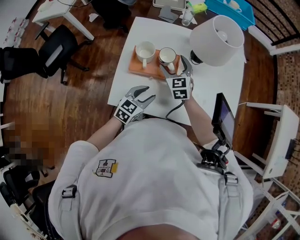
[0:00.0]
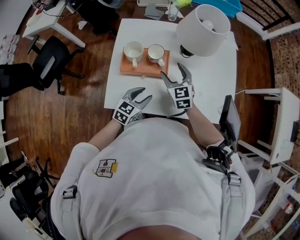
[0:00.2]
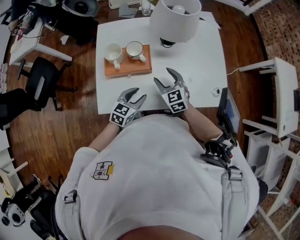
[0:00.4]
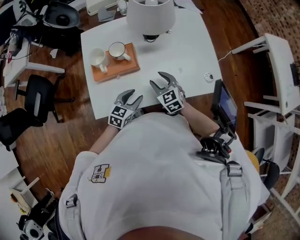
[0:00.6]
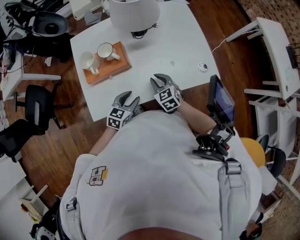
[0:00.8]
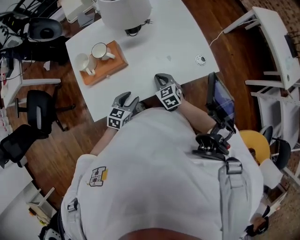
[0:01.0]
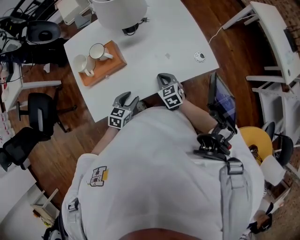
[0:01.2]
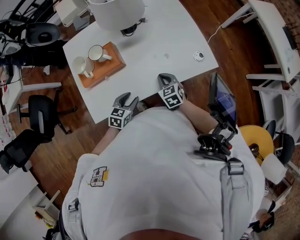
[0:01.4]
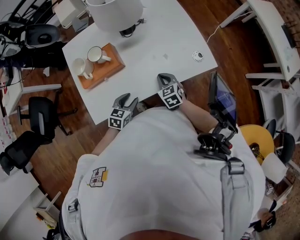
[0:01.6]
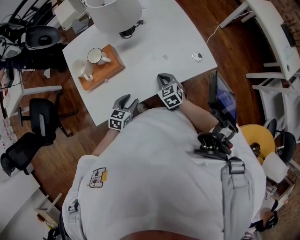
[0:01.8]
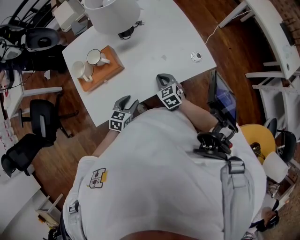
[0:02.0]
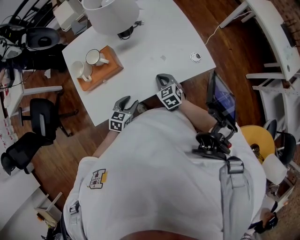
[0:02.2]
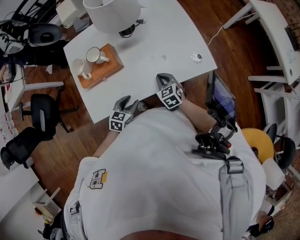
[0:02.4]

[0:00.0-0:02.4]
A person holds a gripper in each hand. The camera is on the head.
0:00.0 to 0:01.2: The left gripper goes approximately 15 cm to the right, downward and backward, and rotates about 20 degrees. The right gripper goes approximately 30 cm to the right, backward and downward, turns by some 30 degrees, and closes.
0:01.2 to 0:02.4: There are only small adjustments of the grippers.

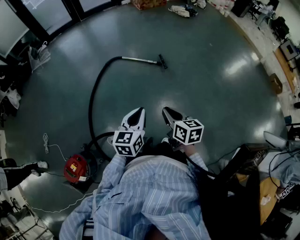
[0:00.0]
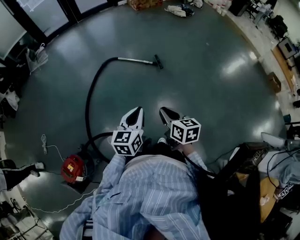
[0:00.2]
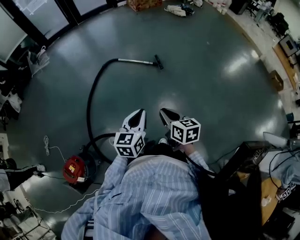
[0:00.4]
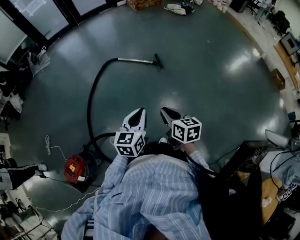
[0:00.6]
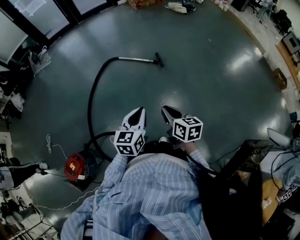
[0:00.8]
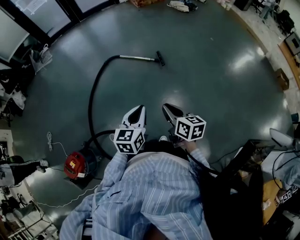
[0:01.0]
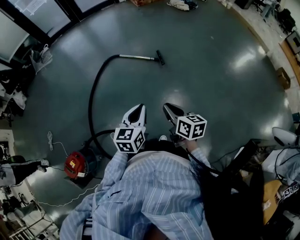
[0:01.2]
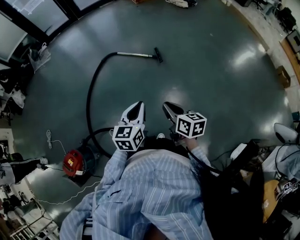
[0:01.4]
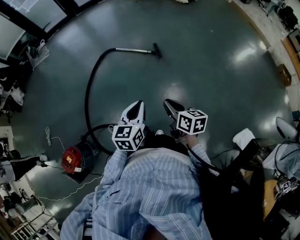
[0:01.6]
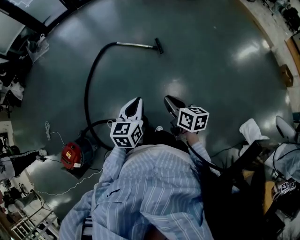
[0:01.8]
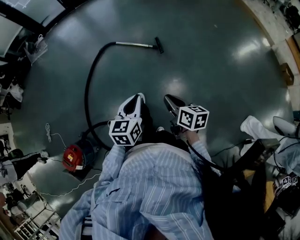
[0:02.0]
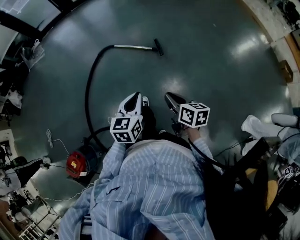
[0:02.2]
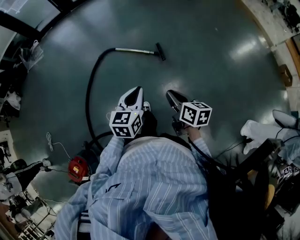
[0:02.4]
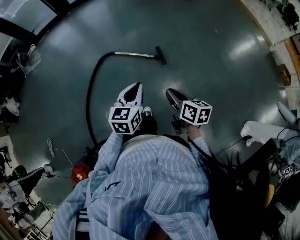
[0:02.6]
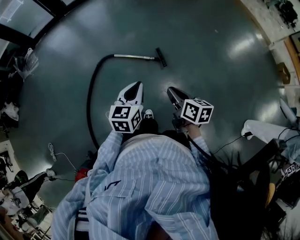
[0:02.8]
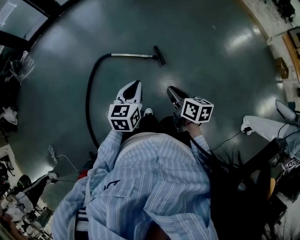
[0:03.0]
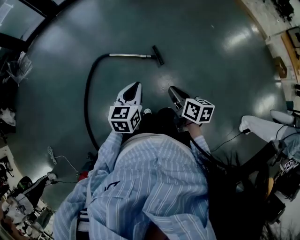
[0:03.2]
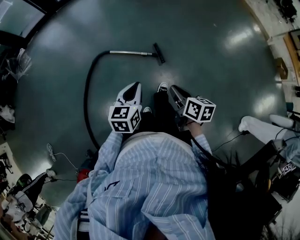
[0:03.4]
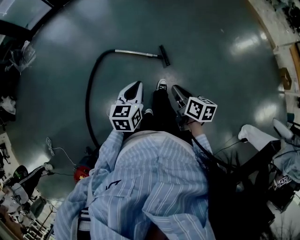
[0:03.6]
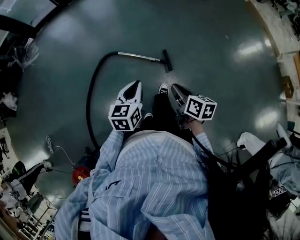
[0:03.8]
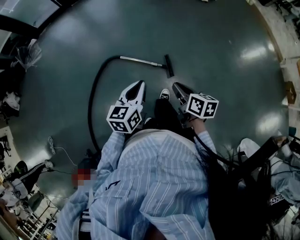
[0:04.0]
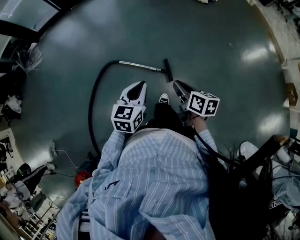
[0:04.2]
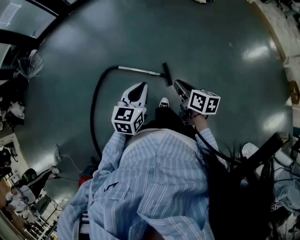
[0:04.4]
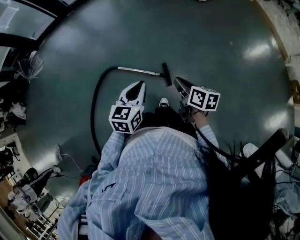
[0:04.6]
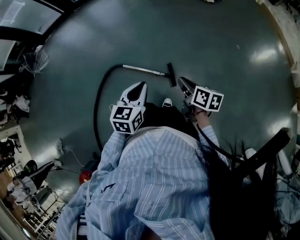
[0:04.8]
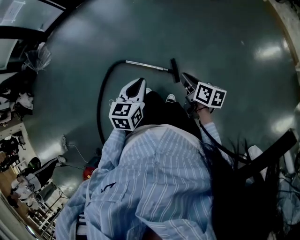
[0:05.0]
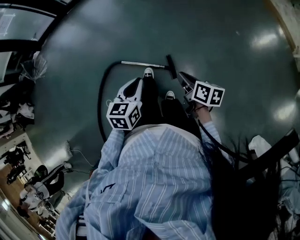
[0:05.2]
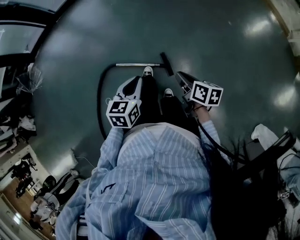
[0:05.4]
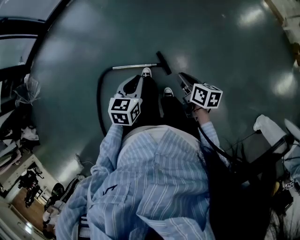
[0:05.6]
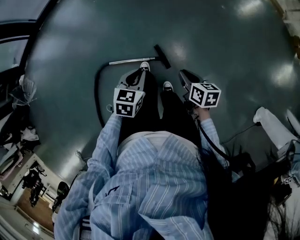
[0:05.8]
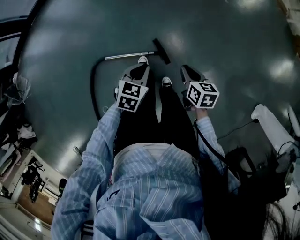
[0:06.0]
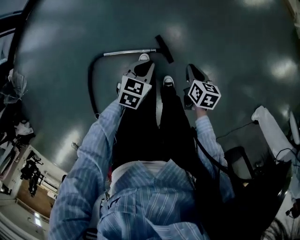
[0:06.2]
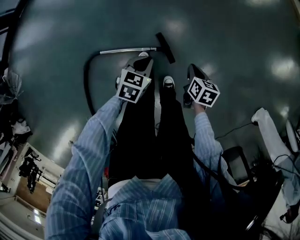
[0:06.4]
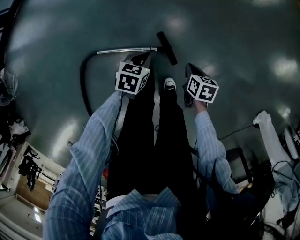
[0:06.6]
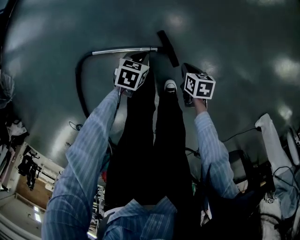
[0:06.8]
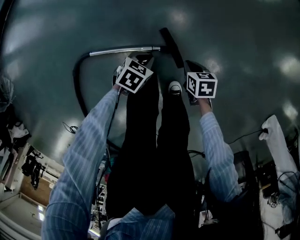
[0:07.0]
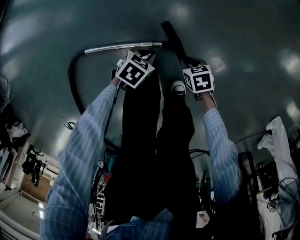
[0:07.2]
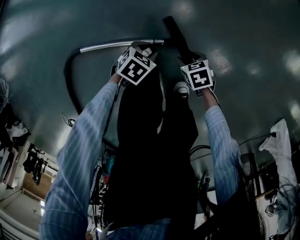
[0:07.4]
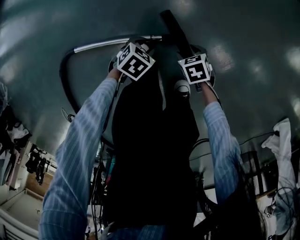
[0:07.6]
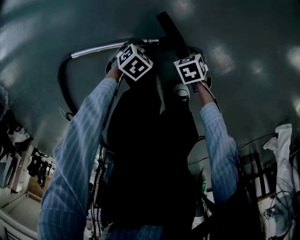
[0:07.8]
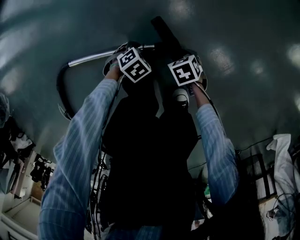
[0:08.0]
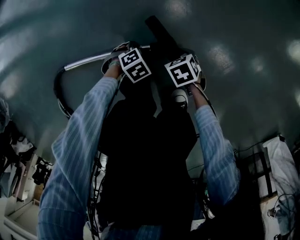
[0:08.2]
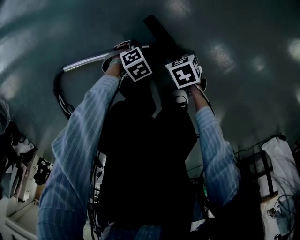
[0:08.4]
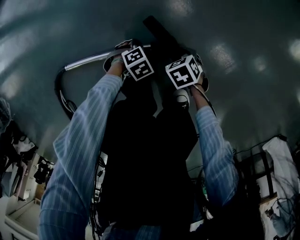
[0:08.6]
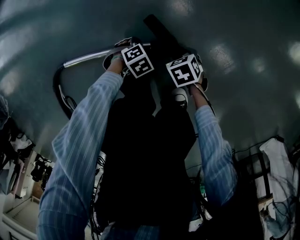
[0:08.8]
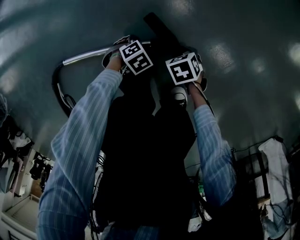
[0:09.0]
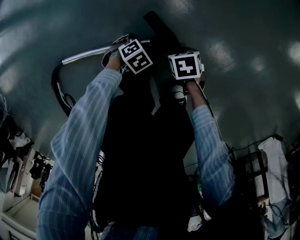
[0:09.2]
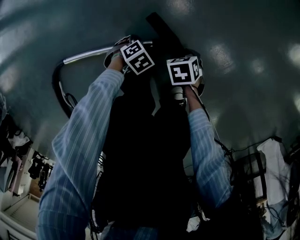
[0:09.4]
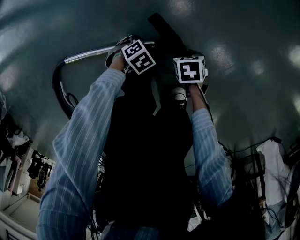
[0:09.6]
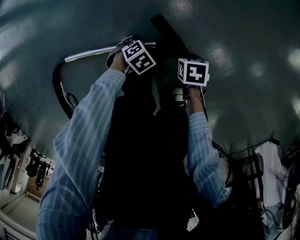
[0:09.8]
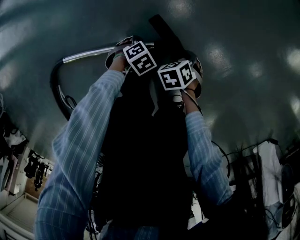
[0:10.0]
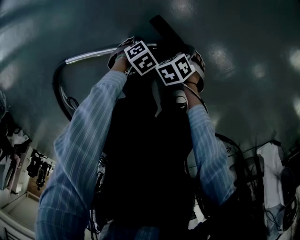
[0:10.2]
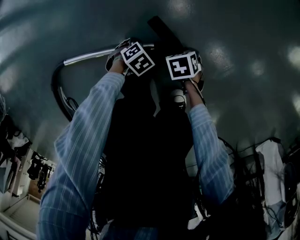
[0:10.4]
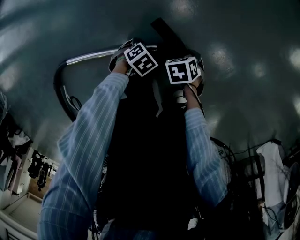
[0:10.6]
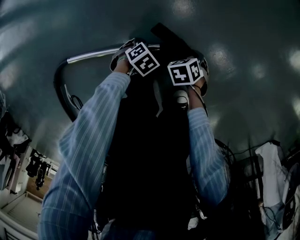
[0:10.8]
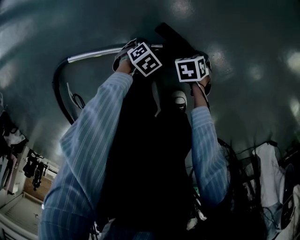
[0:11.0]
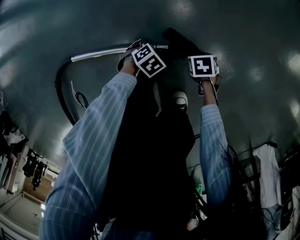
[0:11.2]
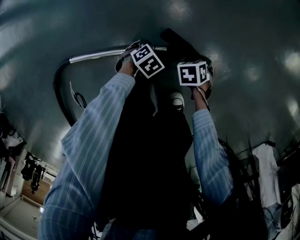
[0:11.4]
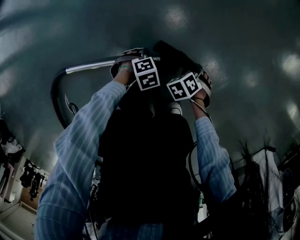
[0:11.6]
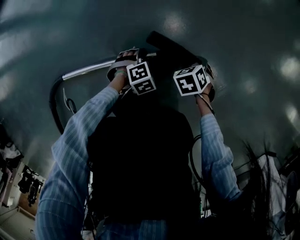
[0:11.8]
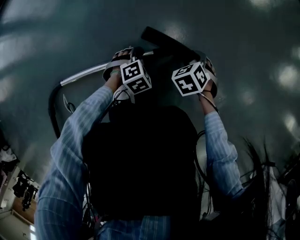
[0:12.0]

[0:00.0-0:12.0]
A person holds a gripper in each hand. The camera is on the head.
0:00.0 to 0:01.6: The two grippers go some 15 cm to the right.
0:01.6 to 0:03.0: The two grippers go about 35 cm forward.
0:03.0 to 0:04.4: The two grippers go some 30 cm forward.
0:04.4 to 0:06.0: The left gripper ends up about 25 cm from where it was, and changes its angle by approximately 40 degrees. The right gripper heads downward, covering roughly 15 cm, and swivels about 20 degrees.
0:06.0 to 0:07.6: The grippers both shift downward by roughly 60 cm. The right gripper swivels approximately 40 degrees, and opens up. The left gripper rotates approximately 30 degrees, and opens up.
0:07.6 to 0:09.0: The left gripper moves downward, some 10 cm, and rotates some 30 degrees; the right gripper shifts some 5 cm downward.
0:10.4 to 0:12.0: The left gripper changes place by approximately 10 cm, and turns by about 30 degrees; the right gripper moves some 15 cm, and turns by some 30 degrees.

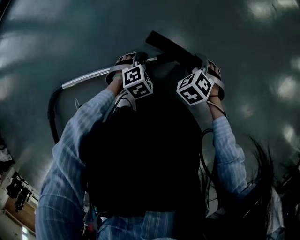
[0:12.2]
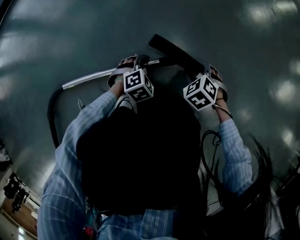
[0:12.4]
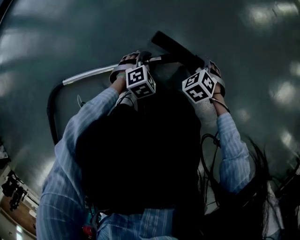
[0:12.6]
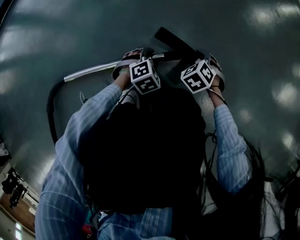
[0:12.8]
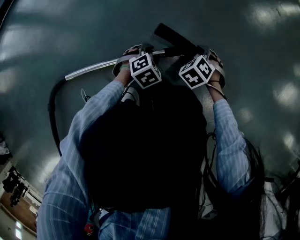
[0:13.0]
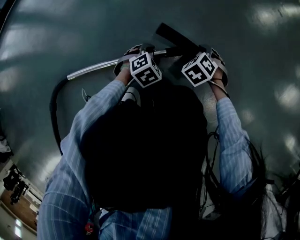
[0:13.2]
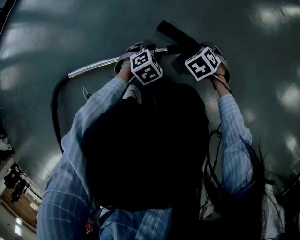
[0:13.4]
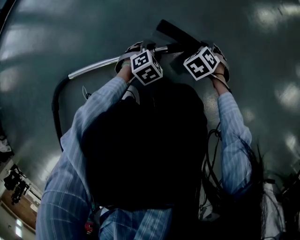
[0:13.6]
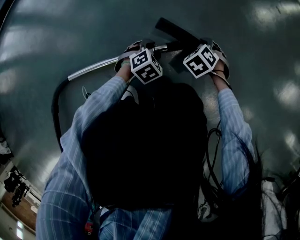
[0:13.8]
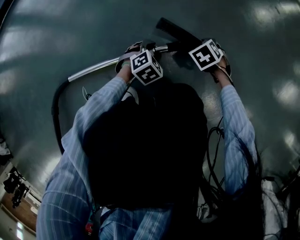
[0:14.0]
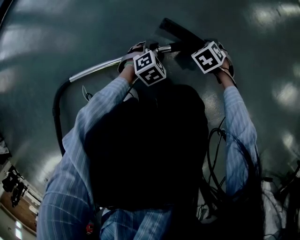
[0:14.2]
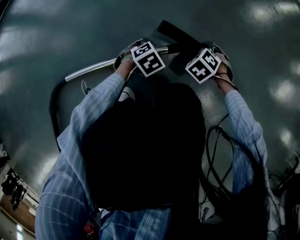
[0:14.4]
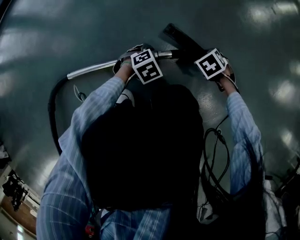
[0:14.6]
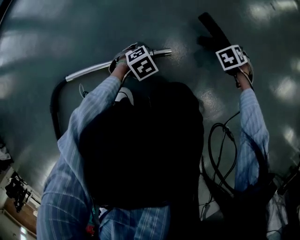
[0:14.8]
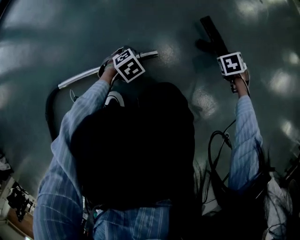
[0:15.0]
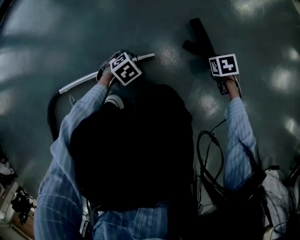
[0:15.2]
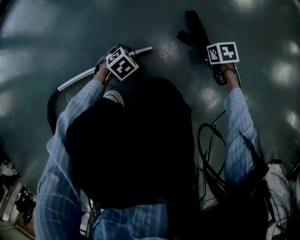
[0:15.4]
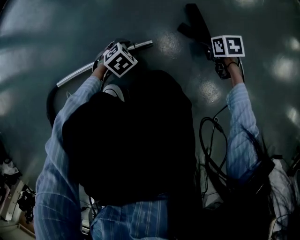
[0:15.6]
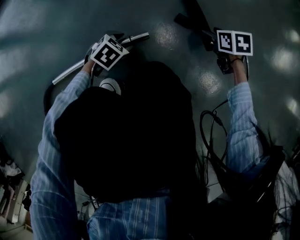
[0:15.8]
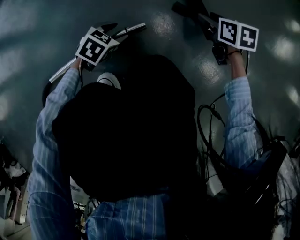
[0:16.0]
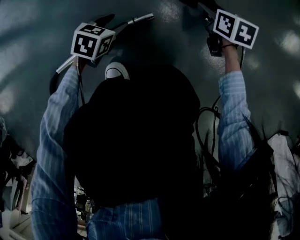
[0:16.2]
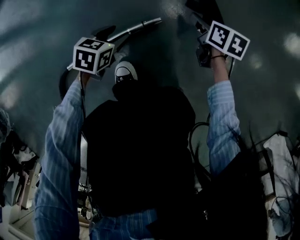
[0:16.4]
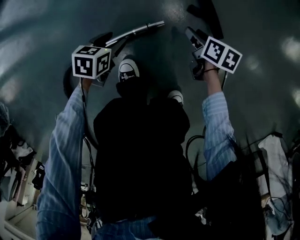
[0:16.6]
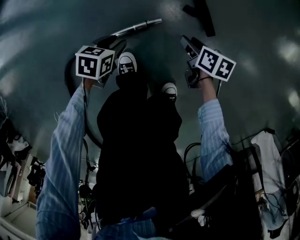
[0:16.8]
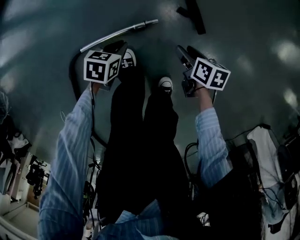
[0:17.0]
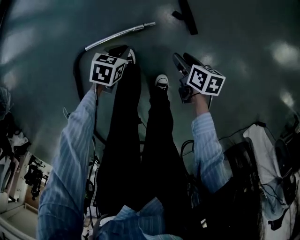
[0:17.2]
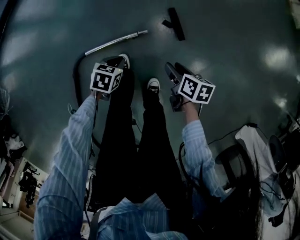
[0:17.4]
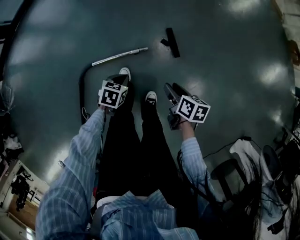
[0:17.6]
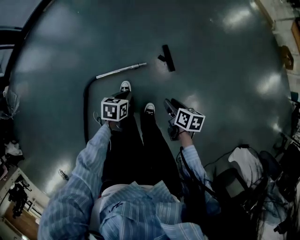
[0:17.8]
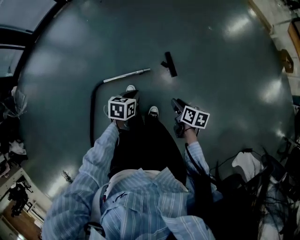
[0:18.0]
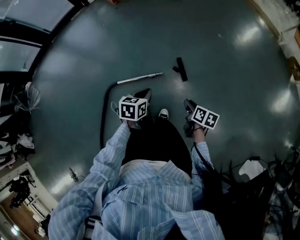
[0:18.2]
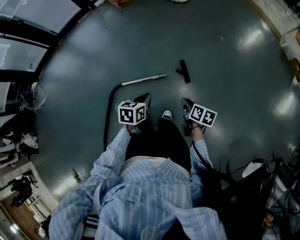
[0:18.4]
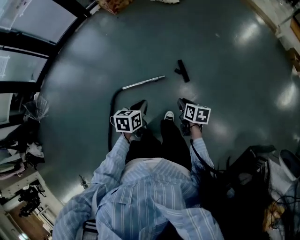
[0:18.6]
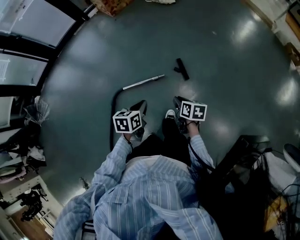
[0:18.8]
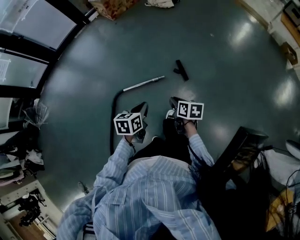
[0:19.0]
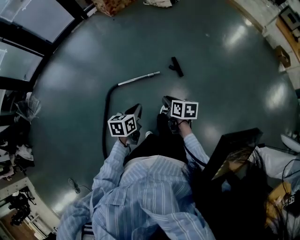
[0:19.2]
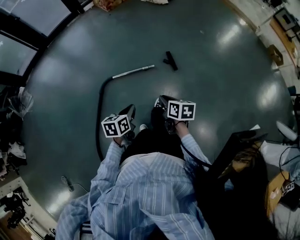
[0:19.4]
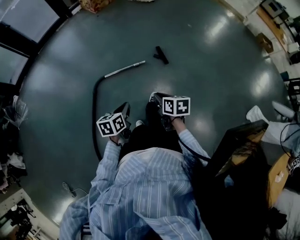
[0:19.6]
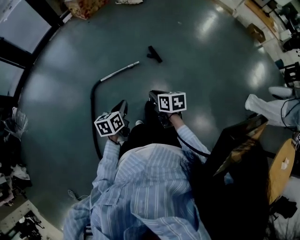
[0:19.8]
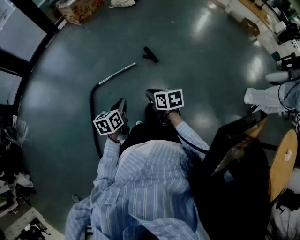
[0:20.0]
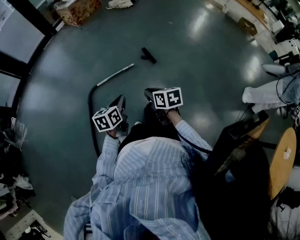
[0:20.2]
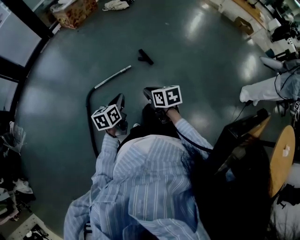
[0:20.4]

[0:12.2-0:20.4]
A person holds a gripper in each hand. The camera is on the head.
0:12.2 to 0:13.8: The right gripper ends up approximately 5 cm from where it was.
0:13.8 to 0:15.4: The right gripper changes place by approximately 15 cm, and twists approximately 40 degrees clockwise, seen from behind.
0:15.4 to 0:17.2: Both grippers move upward, some 40 cm. The left gripper changes its angle by roughly 40 degrees, and closes; the right gripper rotates some 40 degrees.
0:17.2 to 0:18.8: Both grippers travel together upward and backward, some 50 cm. The right gripper closes, while the left gripper changes its angle by about 30 degrees.
0:18.8 to 0:20.4: The left gripper heads backward, covering some 20 cm. The right gripper travels backward and to the left by approximately 25 cm.

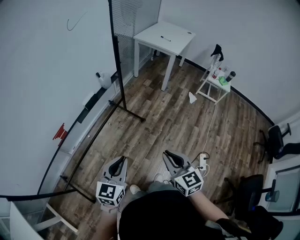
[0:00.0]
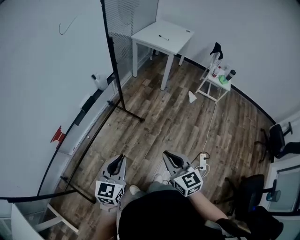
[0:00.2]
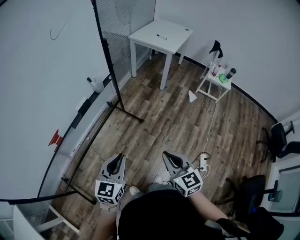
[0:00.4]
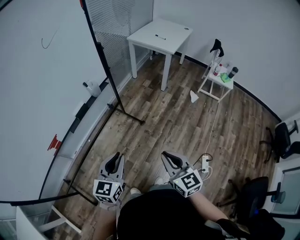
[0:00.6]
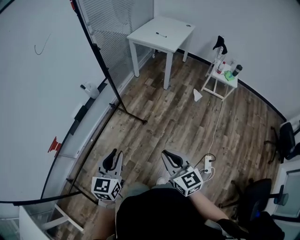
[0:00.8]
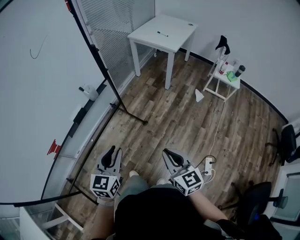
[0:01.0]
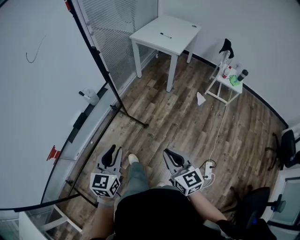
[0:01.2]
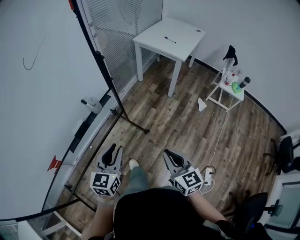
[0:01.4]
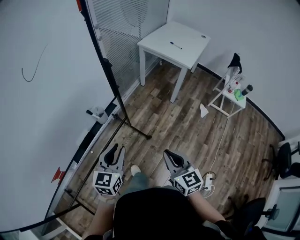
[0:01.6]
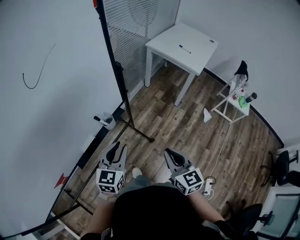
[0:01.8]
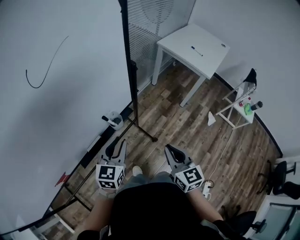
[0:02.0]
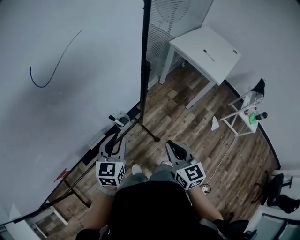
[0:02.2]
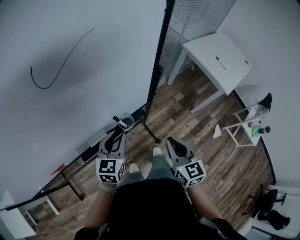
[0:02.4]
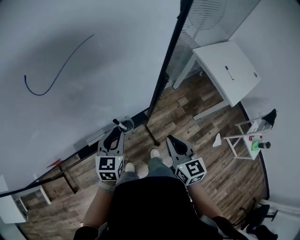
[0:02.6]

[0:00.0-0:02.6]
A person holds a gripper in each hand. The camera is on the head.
0:00.0 to 0:01.2: Both grippers travel together forward and to the right, approximately 20 cm.
0:01.2 to 0:02.6: The right gripper moves about 50 cm, and turns by some 20 degrees, while the left gripper changes place by approximately 40 cm, and rotates about 30 degrees.
